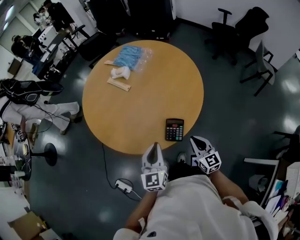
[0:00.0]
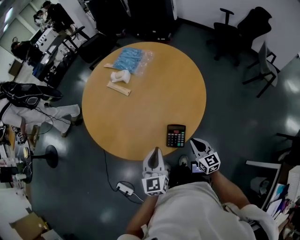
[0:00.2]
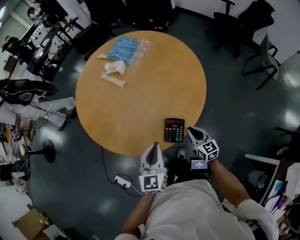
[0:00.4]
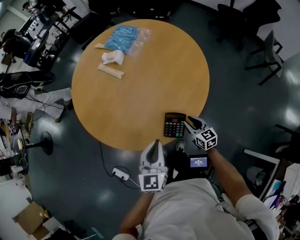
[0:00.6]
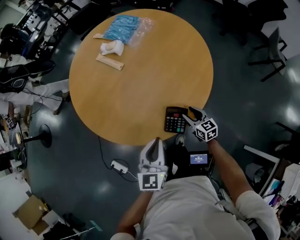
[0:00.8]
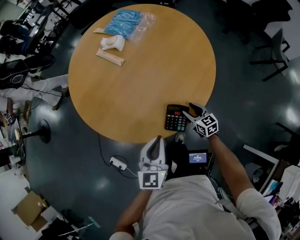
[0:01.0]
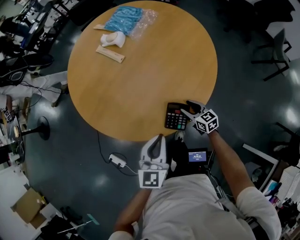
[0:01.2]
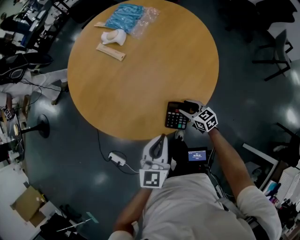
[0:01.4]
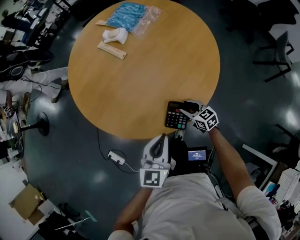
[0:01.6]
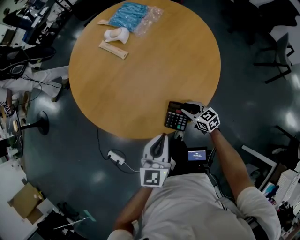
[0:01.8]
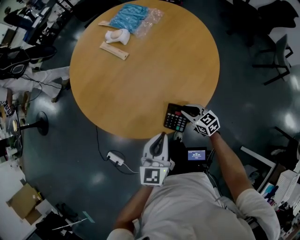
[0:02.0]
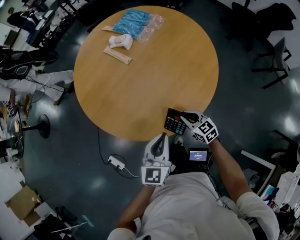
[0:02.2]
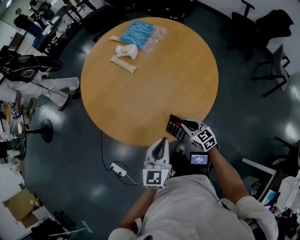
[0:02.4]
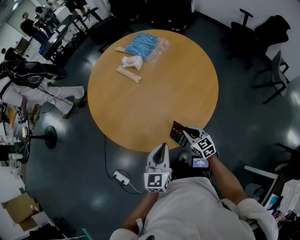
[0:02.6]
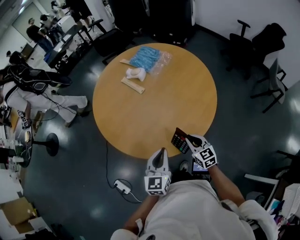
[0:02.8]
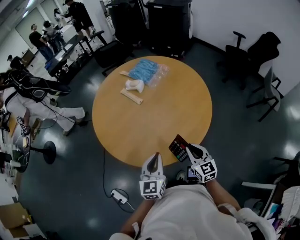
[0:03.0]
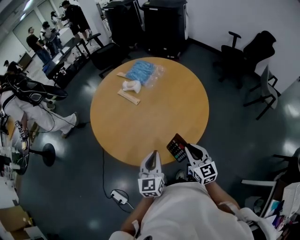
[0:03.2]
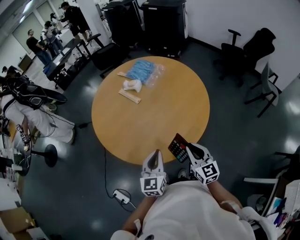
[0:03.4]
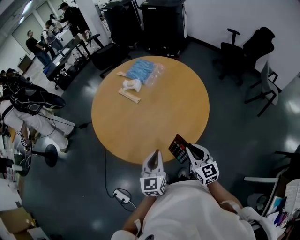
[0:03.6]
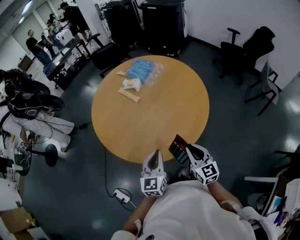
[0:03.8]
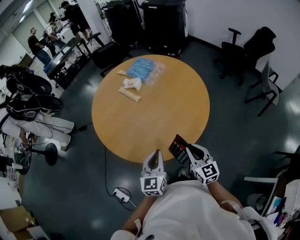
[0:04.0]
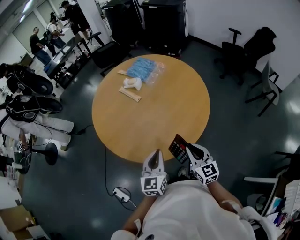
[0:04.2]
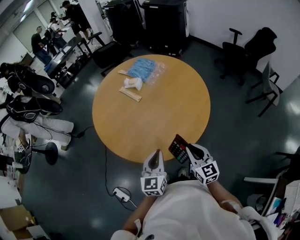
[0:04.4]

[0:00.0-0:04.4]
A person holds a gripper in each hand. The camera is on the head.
0:00.0 to 0:01.4: The left gripper moves downward, approximately 5 cm, while the right gripper heads downward and forward, covering about 25 cm, swivels some 30 degrees, and opens up.
0:01.4 to 0:03.0: The left gripper heads to the left and upward, covering approximately 10 cm. Meanwhile the right gripper moves upward, approximately 20 cm, rotates approximately 30 degrees, and closes up.
0:03.0 to 0:04.4: The right gripper ends up roughly 5 cm from where it was.

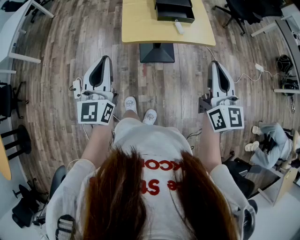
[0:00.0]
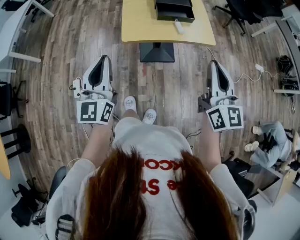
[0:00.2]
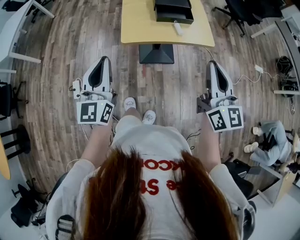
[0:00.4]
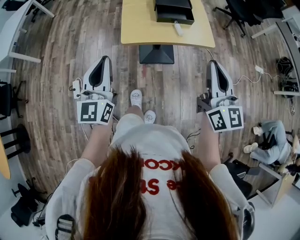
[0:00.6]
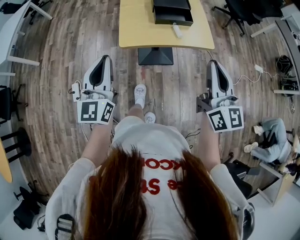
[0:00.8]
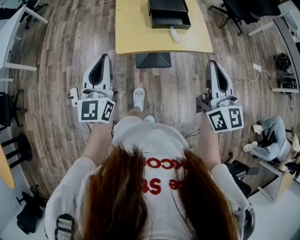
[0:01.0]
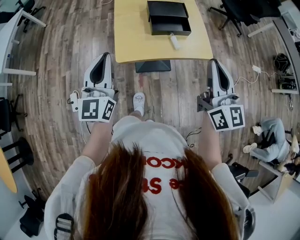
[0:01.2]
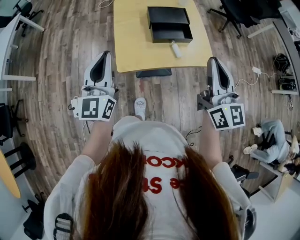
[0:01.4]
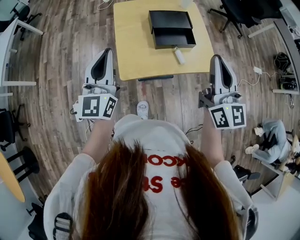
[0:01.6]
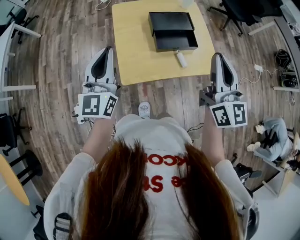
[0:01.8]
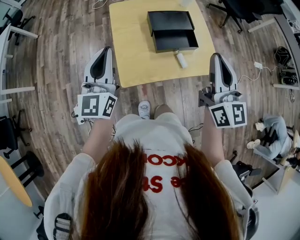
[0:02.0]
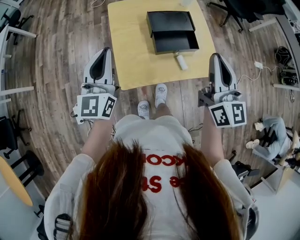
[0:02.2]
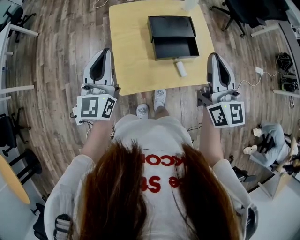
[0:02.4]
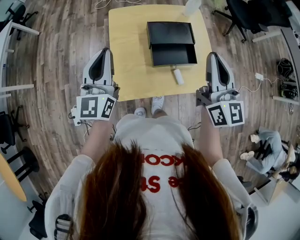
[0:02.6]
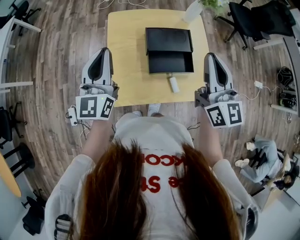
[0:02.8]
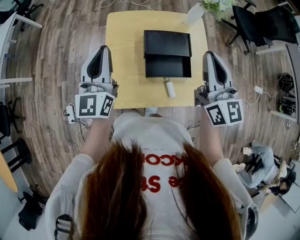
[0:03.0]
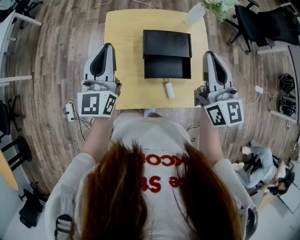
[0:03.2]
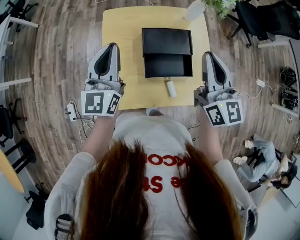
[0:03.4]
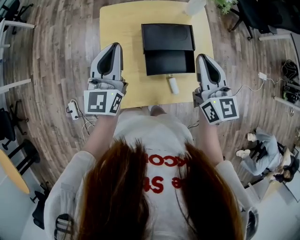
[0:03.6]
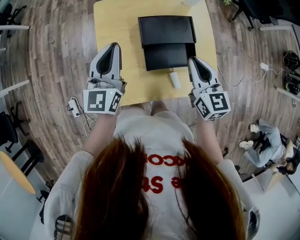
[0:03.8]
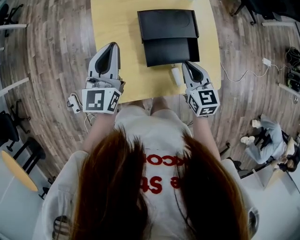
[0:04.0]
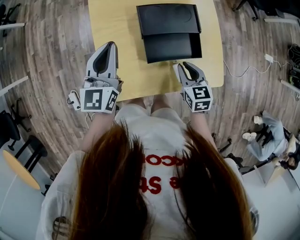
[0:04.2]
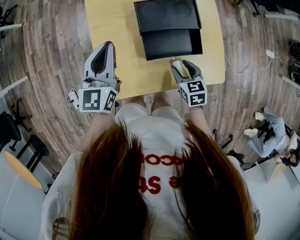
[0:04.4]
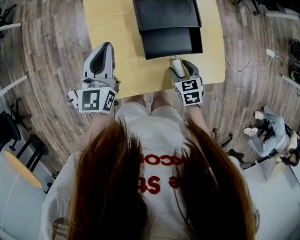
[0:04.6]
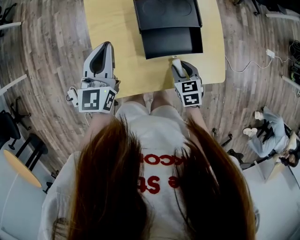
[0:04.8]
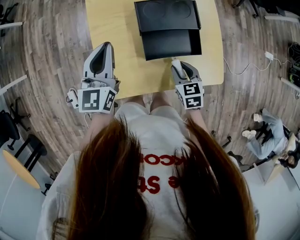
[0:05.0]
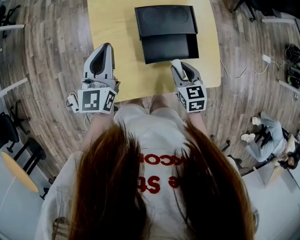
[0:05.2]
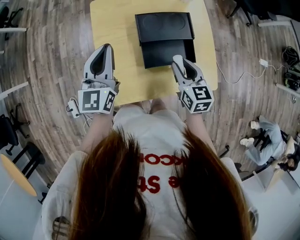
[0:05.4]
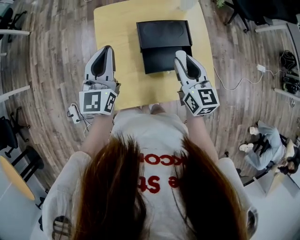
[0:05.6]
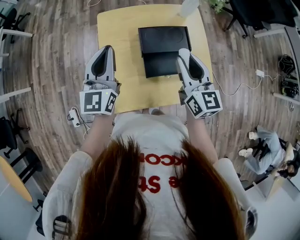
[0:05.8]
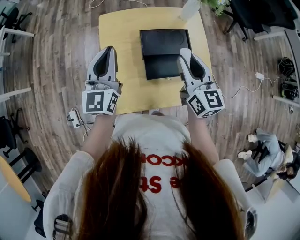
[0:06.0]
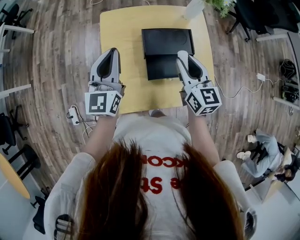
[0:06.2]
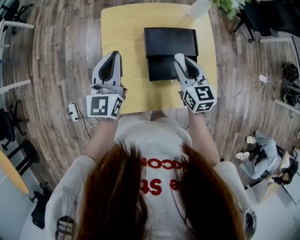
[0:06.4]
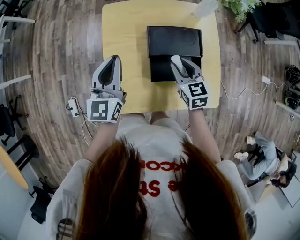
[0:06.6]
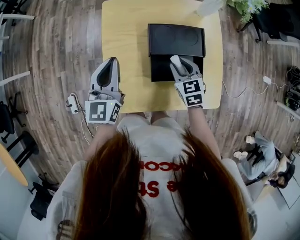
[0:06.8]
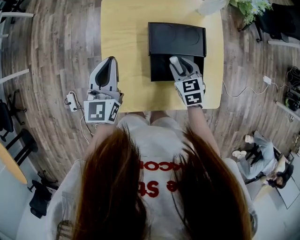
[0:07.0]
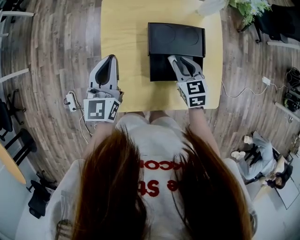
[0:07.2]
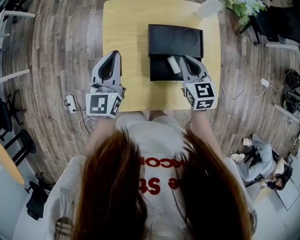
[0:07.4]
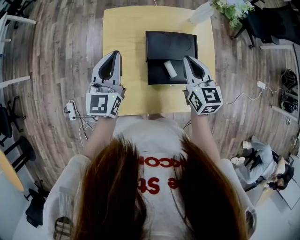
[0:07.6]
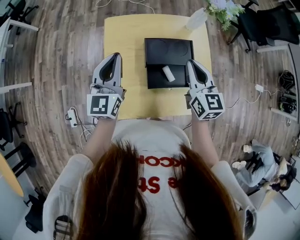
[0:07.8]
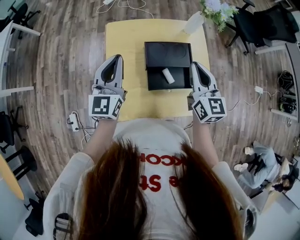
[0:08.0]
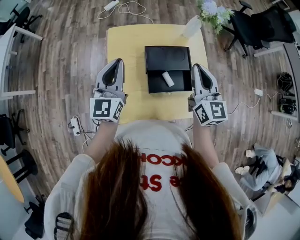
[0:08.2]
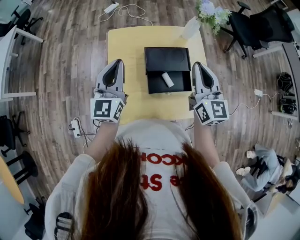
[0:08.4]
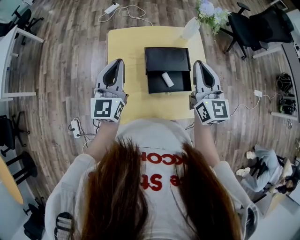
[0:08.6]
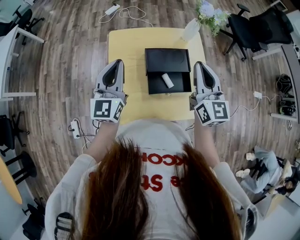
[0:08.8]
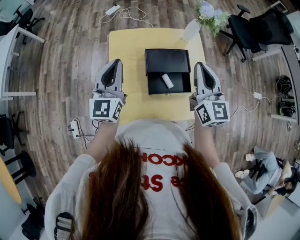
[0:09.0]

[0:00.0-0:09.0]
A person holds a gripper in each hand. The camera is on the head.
0:00.0 to 0:01.6: The two grippers go roughly 20 cm forward.
0:01.6 to 0:03.0: The two grippers go about 20 cm forward.
0:03.0 to 0:04.4: The right gripper is displaced downward by some 35 cm, tips its fingers downward by roughly 50 degrees, and opens its fingers. The left gripper moves downward, about 15 cm, and swivels some 20 degrees.
0:04.4 to 0:06.0: The right gripper goes approximately 25 cm upward and forward, and tips its fingers upward by approximately 40 degrees. The left gripper goes roughly 10 cm upward.
0:06.0 to 0:07.6: The right gripper reaches approximately 20 cm downward, then returns, and closes its fingers.
0:07.6 to 0:09.0: The left gripper is displaced upward by approximately 5 cm, while the right gripper goes some 15 cm upward, and turns by roughly 20 degrees.

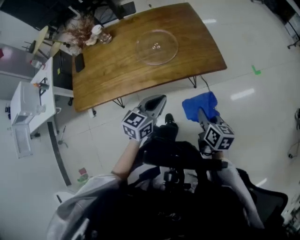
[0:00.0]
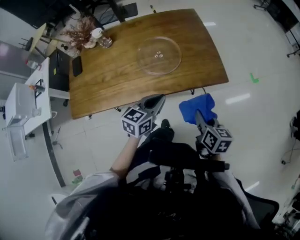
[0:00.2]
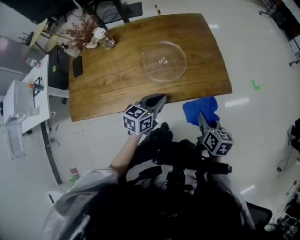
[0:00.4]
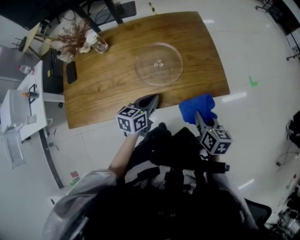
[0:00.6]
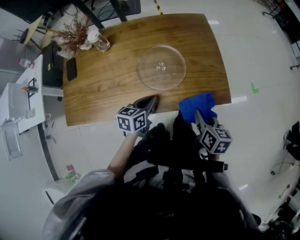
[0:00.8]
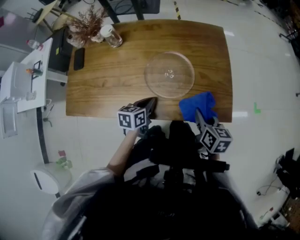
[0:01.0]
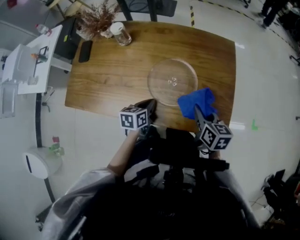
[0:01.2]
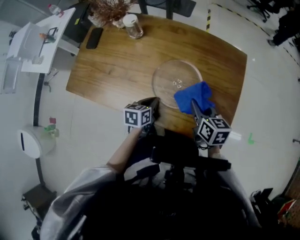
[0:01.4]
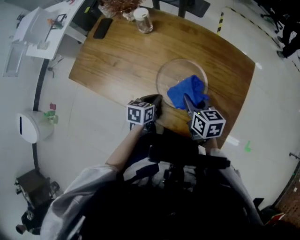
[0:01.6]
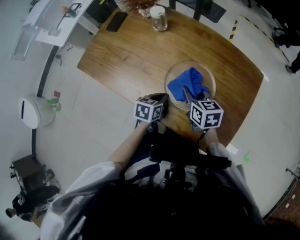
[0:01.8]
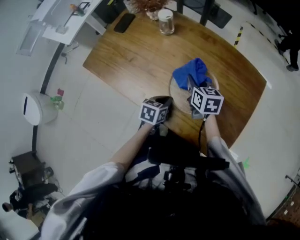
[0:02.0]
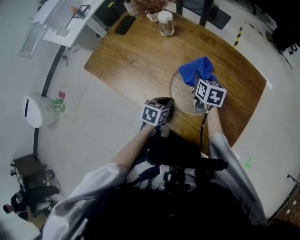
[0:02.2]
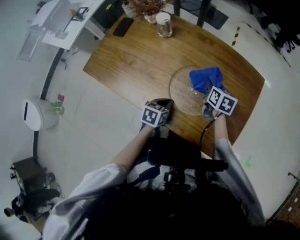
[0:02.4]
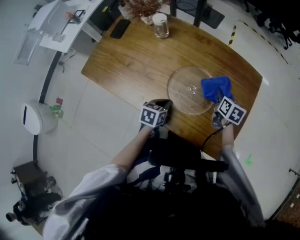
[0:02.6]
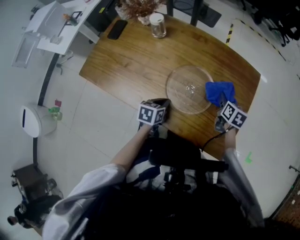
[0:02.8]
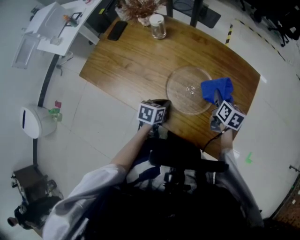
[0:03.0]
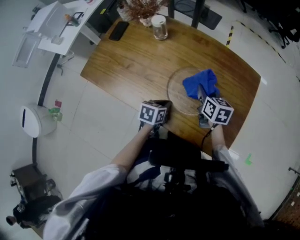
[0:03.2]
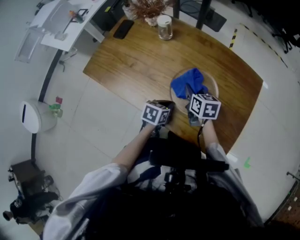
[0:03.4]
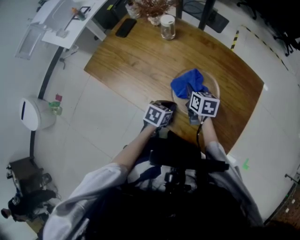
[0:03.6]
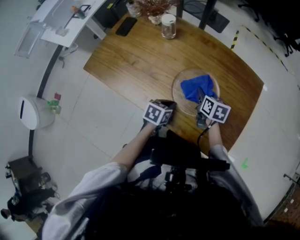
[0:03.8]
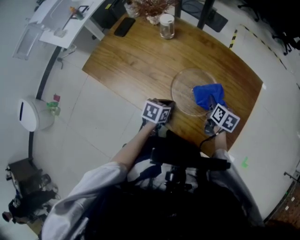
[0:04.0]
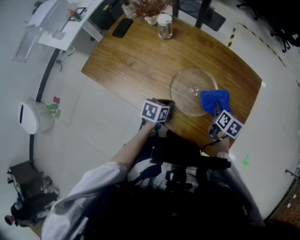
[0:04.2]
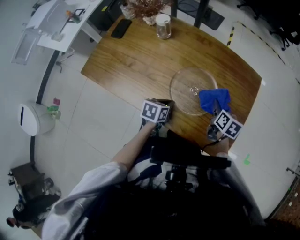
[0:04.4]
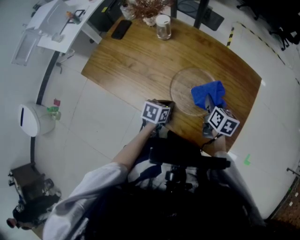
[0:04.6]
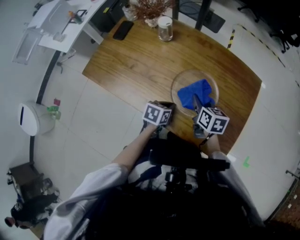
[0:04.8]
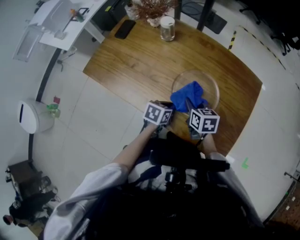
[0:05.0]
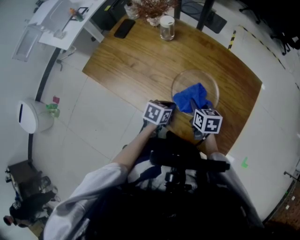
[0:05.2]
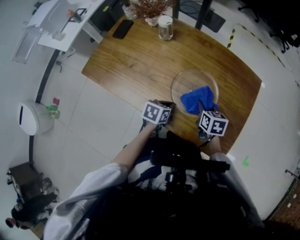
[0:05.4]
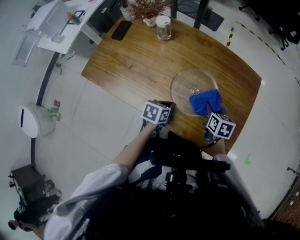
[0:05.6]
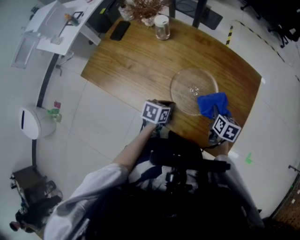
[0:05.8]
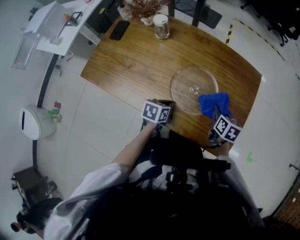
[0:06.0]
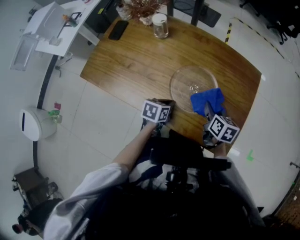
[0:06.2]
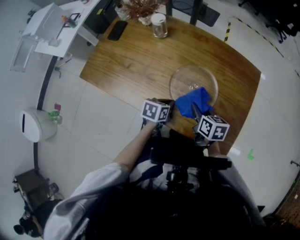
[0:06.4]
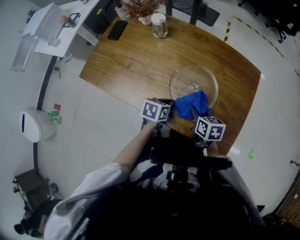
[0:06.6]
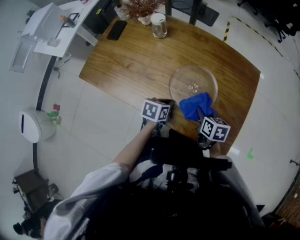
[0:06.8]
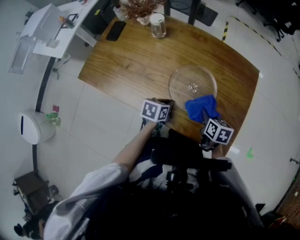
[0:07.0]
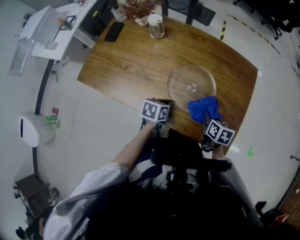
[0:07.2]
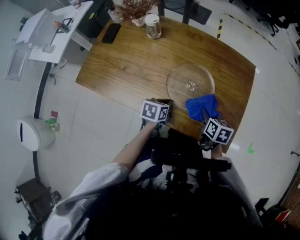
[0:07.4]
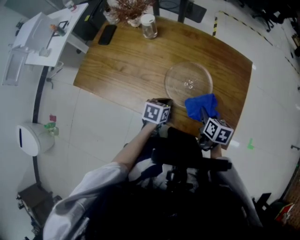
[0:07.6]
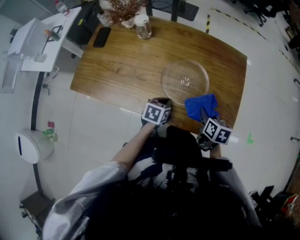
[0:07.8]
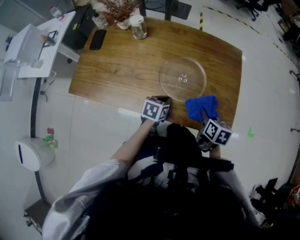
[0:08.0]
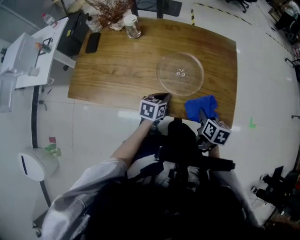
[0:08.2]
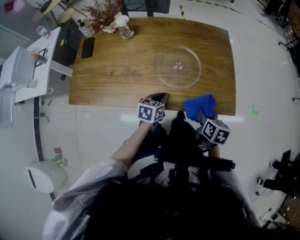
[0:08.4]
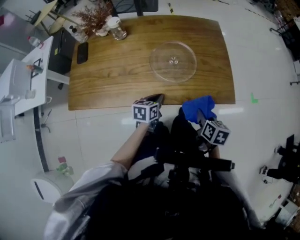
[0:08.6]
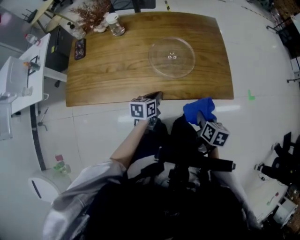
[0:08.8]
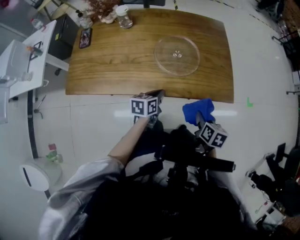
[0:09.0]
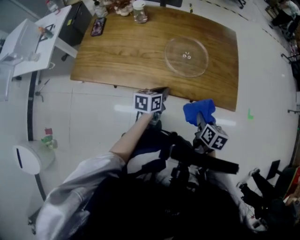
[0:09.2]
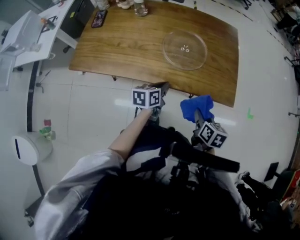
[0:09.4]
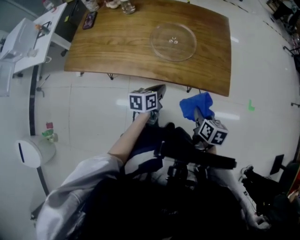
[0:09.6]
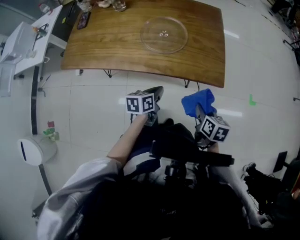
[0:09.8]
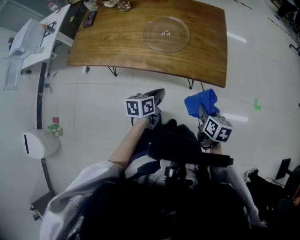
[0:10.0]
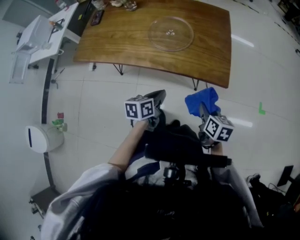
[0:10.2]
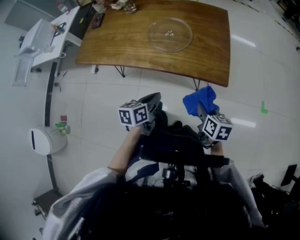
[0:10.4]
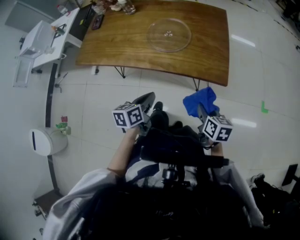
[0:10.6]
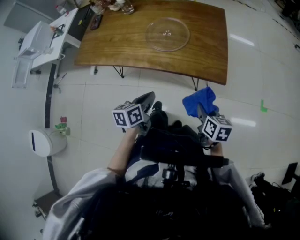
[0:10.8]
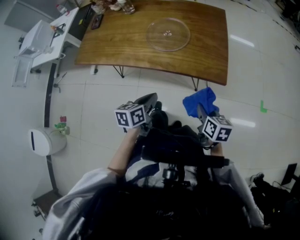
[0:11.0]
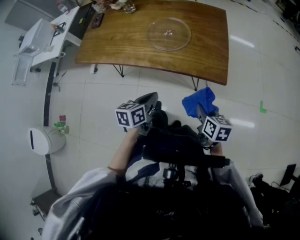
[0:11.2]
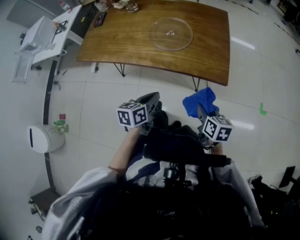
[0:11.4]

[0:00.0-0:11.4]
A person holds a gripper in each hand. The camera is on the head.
0:00.0 to 0:01.4: The left gripper changes place by some 25 cm, and changes its angle by approximately 50 degrees, while the right gripper shifts by roughly 35 cm, and rotates about 40 degrees.
0:01.4 to 0:02.8: The right gripper heads forward, to the right and downward, covering about 15 cm.
0:02.8 to 0:04.2: The right gripper goes to the left and returns, some 20 cm each way.
0:04.2 to 0:05.6: The right gripper travels to the left and back again, roughly 15 cm each way.
0:05.6 to 0:07.2: The right gripper goes left and right, some 10 cm each way, reversing 2 times.
0:07.2 to 0:08.6: The left gripper travels backward by about 10 cm. The right gripper goes approximately 20 cm backward, and swivels roughly 30 degrees.
0:08.6 to 0:10.0: The grippers both shift to the right and backward by about 15 cm.
0:10.0 to 0:11.4: The left gripper travels backward by some 5 cm.
